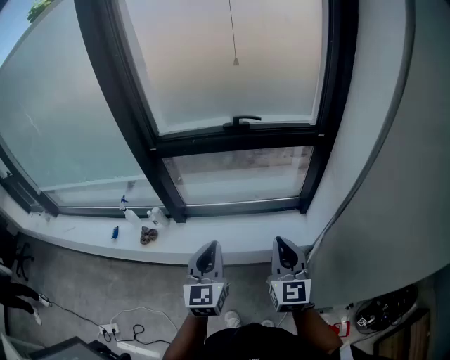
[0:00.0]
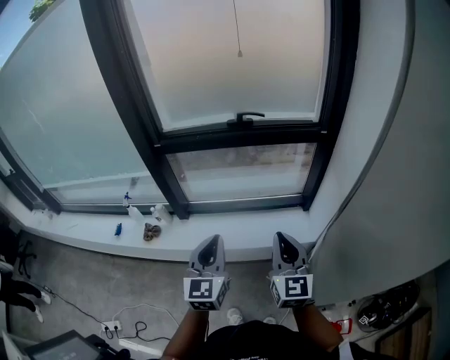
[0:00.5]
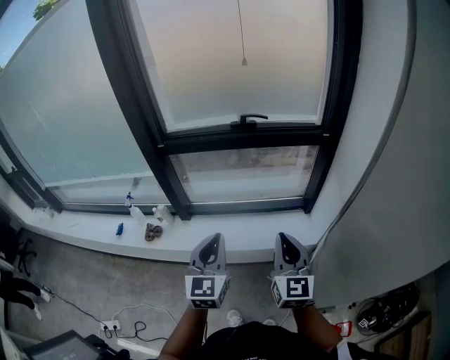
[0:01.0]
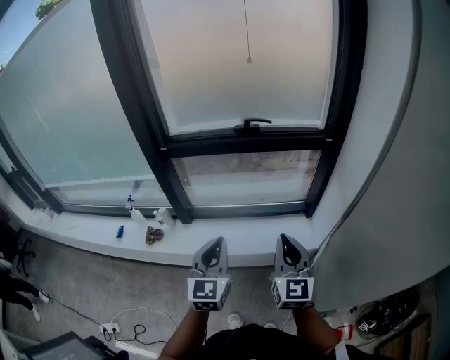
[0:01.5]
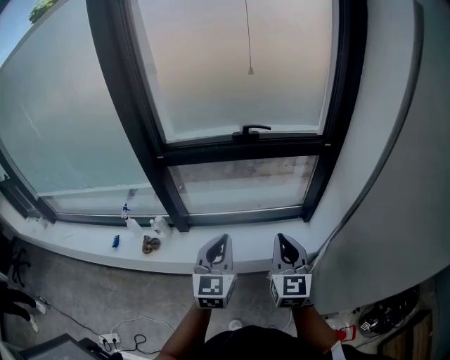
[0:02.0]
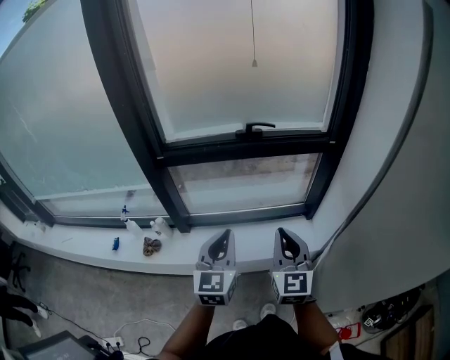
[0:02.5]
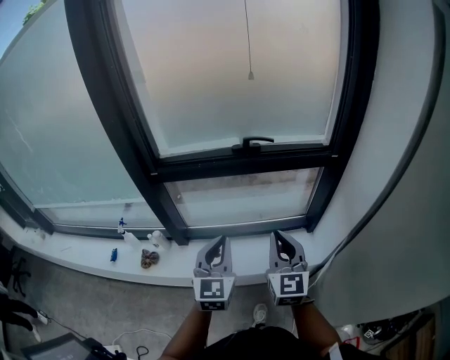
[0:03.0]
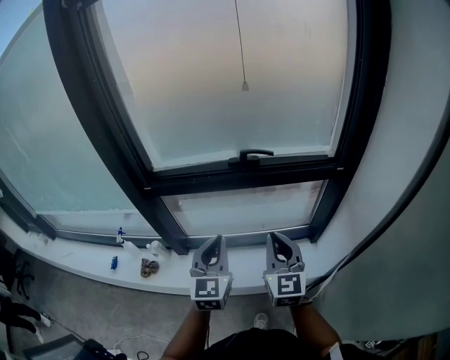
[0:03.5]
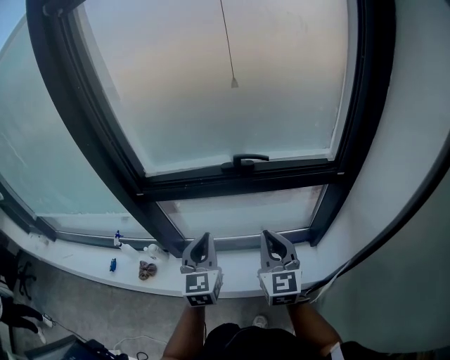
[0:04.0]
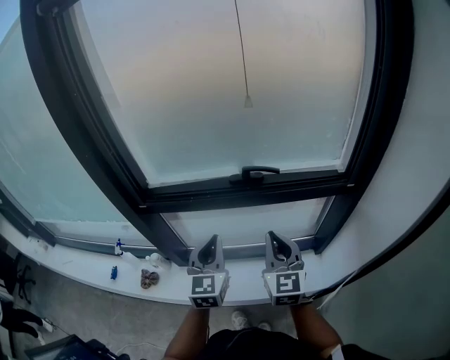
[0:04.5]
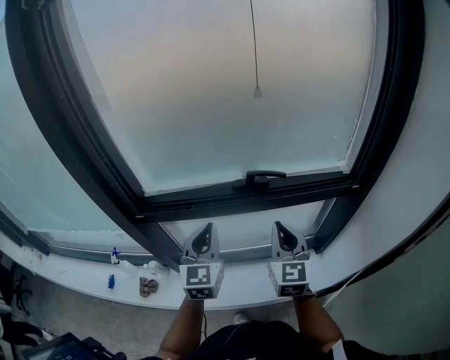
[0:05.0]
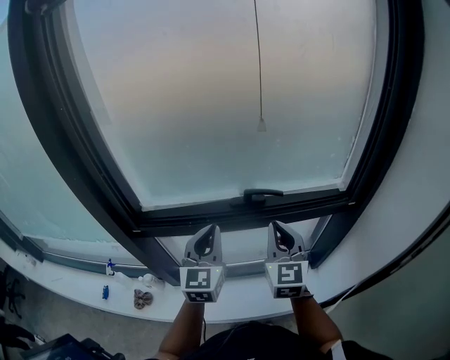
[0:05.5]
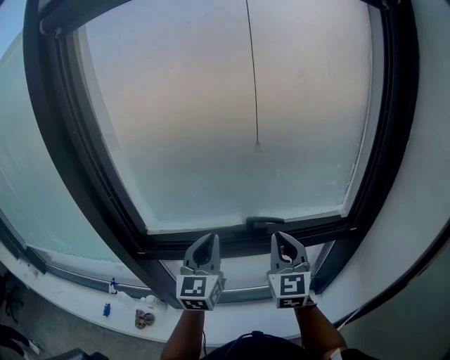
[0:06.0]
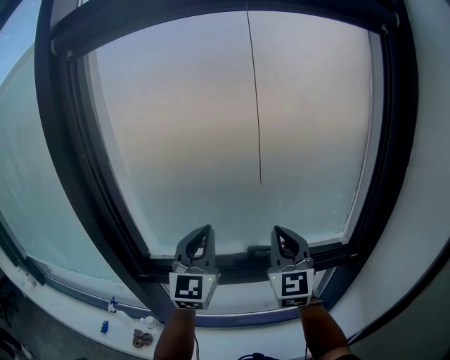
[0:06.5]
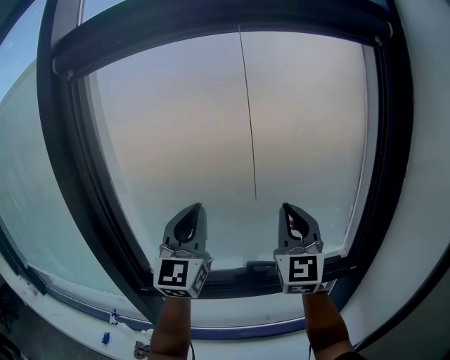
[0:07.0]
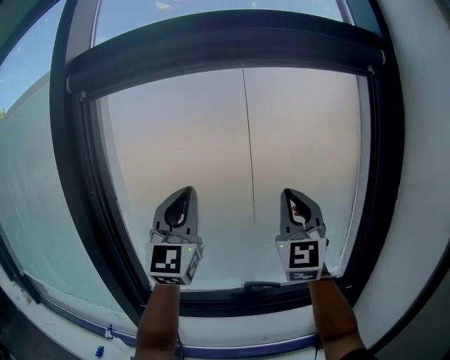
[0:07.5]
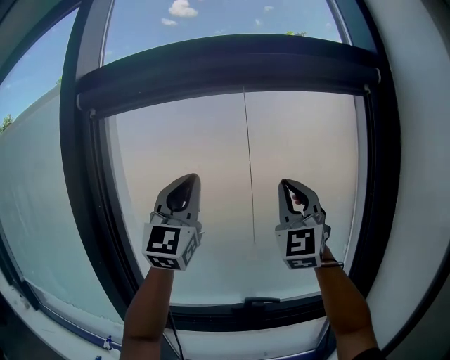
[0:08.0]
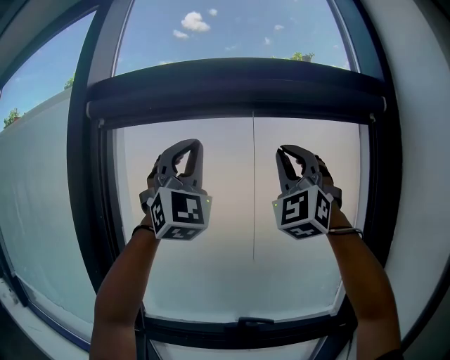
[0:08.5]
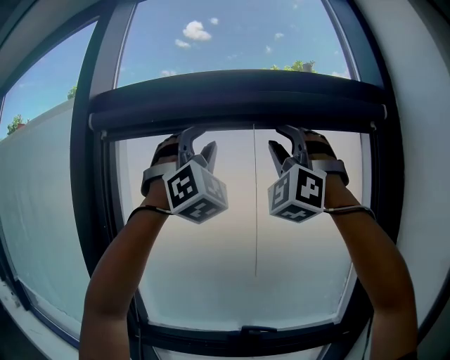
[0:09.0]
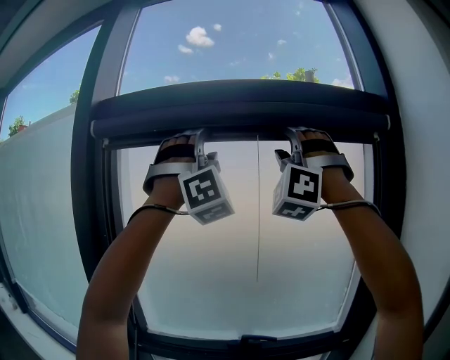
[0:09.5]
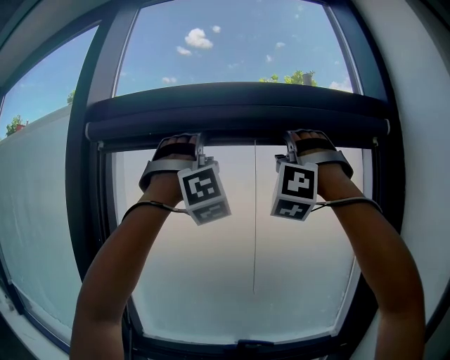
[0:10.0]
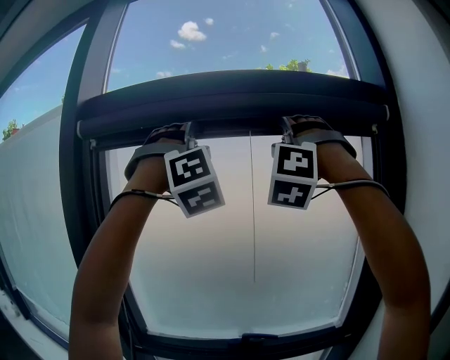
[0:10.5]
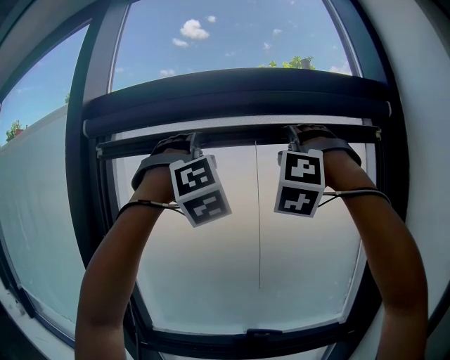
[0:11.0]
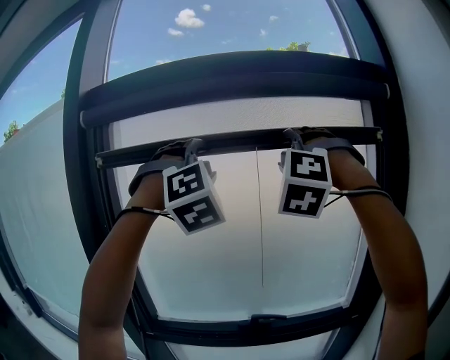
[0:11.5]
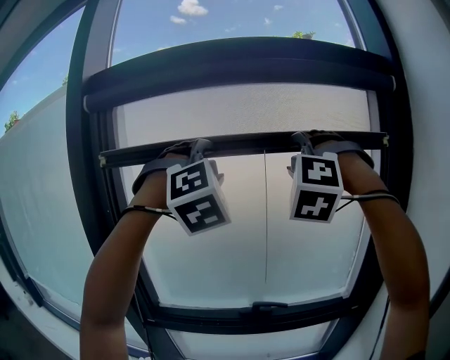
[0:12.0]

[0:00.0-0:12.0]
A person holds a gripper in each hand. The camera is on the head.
0:00.0 to 0:02.0: The right gripper shifts by some 5 cm.
0:02.0 to 0:04.0: The two grippers go some 20 cm forward.
0:04.0 to 0:06.0: The grippers both shift forward and upward by approximately 20 cm.
0:06.0 to 0:08.0: The grippers both shift upward by some 40 cm. The right gripper angles its fingers upward, by approximately 30 degrees. The left gripper points its fingers some 30 degrees further upward.
0:08.0 to 0:10.0: Both grippers travel together upward, some 20 cm. The left gripper rolls clockwise, seen from behind, by about 70 degrees, and opens. Meanwhile the right gripper twists about 60 degrees counterclockwise, seen from behind, and opens up.
0:10.0 to 0:12.0: The grippers both shift downward by roughly 15 cm. The right gripper swivels some 30 degrees; the left gripper rotates approximately 30 degrees.

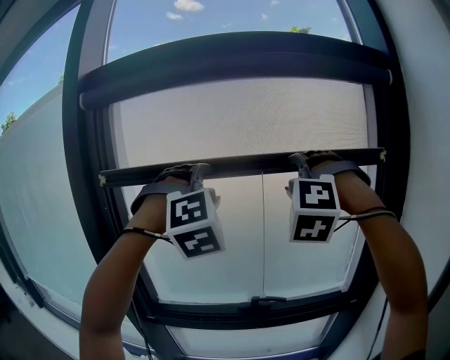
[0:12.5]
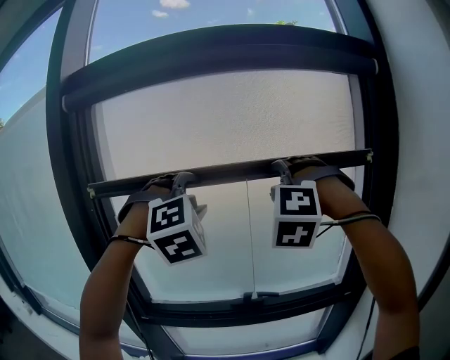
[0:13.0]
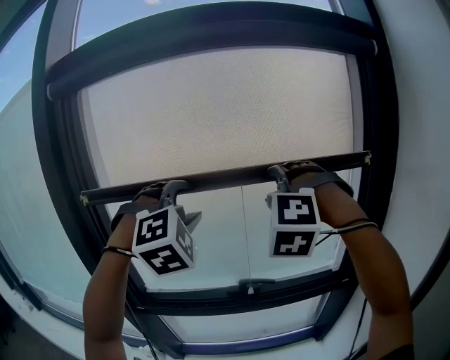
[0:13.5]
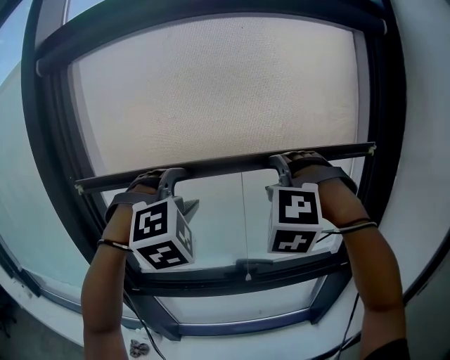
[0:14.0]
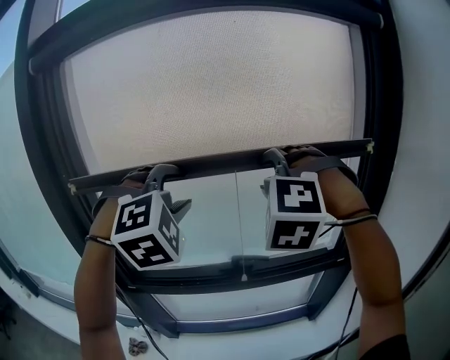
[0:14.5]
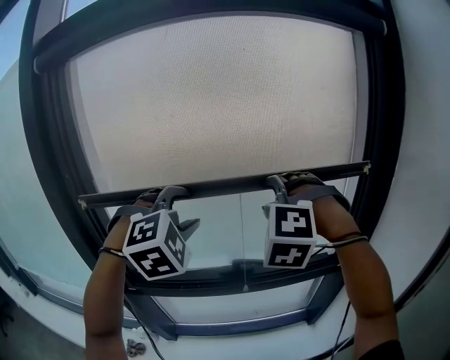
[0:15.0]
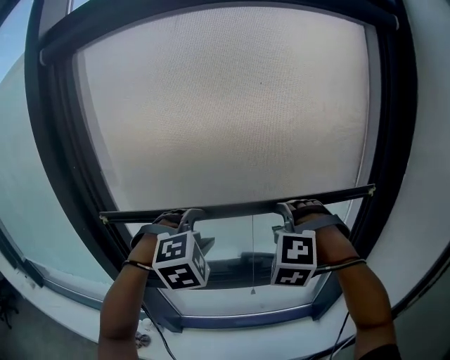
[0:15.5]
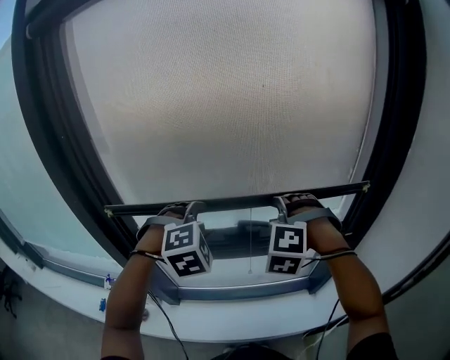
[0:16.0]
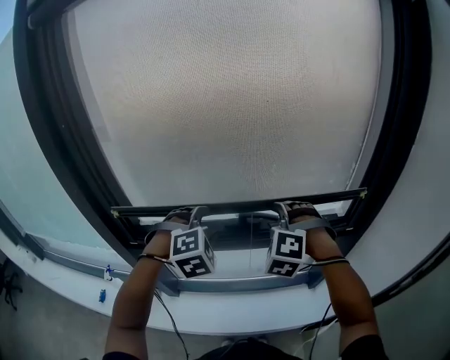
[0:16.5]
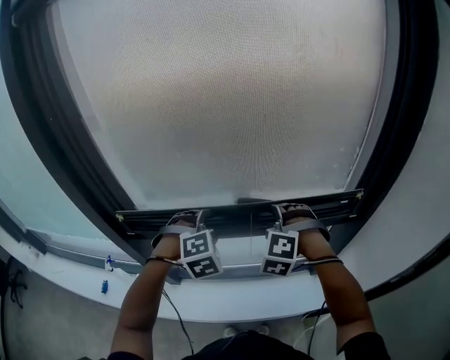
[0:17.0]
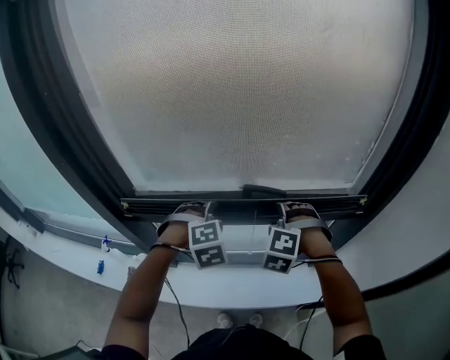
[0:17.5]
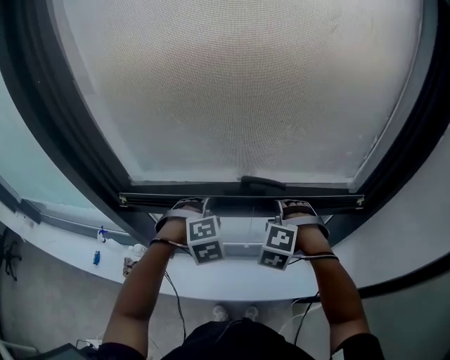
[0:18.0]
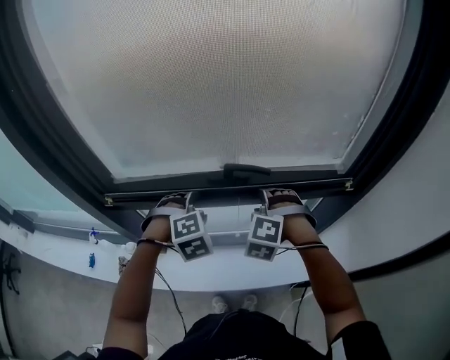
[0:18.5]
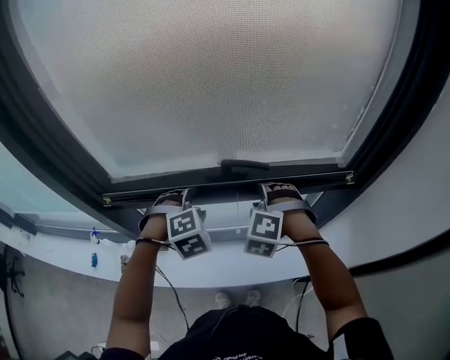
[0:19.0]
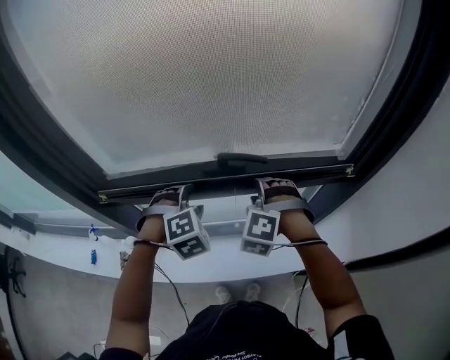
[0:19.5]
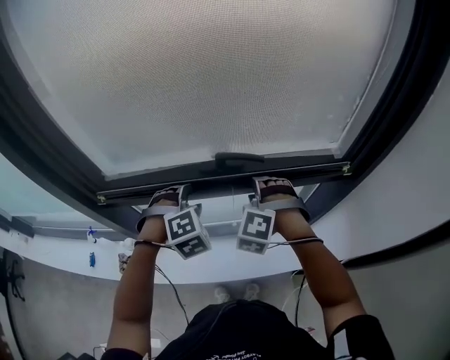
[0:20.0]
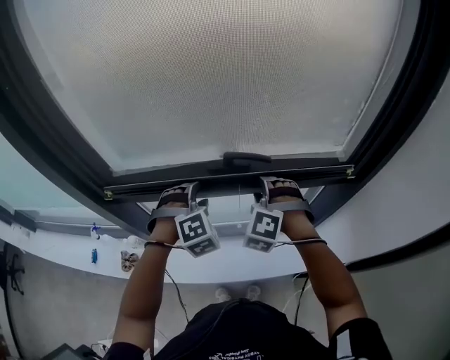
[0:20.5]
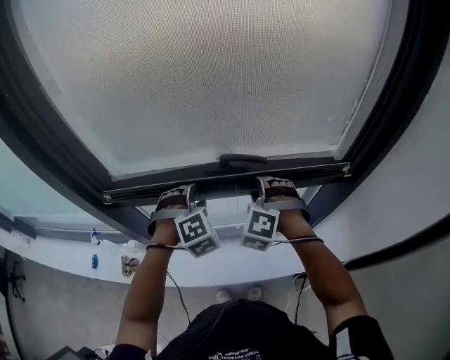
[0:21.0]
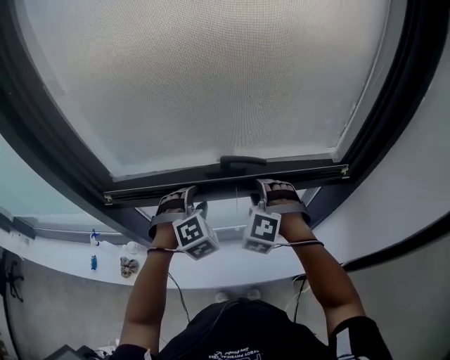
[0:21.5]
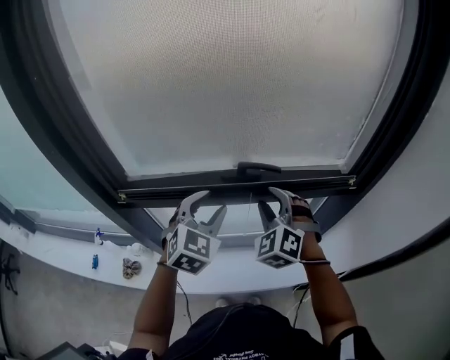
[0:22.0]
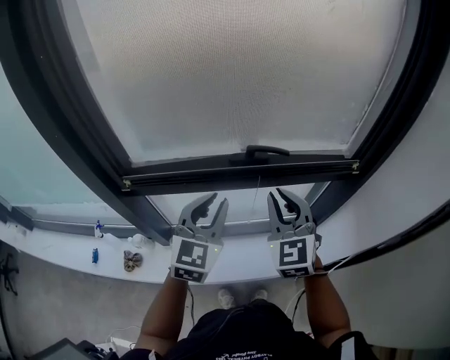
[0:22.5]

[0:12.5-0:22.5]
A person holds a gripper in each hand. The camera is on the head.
0:12.5 to 0:14.5: The two grippers go about 10 cm downward.
0:14.5 to 0:16.5: The two grippers go approximately 25 cm downward. The left gripper changes its angle by about 20 degrees.
0:16.5 to 0:18.5: The two grippers go approximately 15 cm downward.
0:18.5 to 0:20.5: The grippers stay close to where they were, moving slightly.
0:20.5 to 0:22.5: Both grippers travel together upward and backward, about 15 cm. The left gripper points its fingers approximately 30 degrees further upward, and closes, while the right gripper rotates around the line of its fingers by about 50 degrees, clockwise from behind, and closes its fingers.

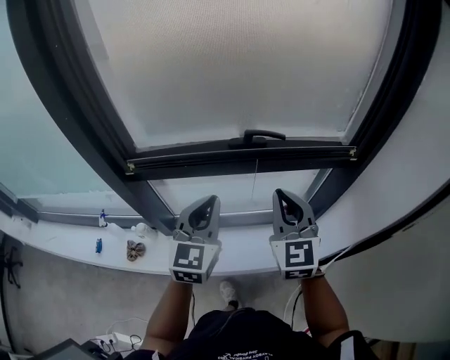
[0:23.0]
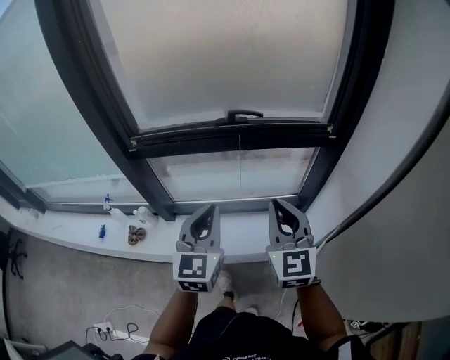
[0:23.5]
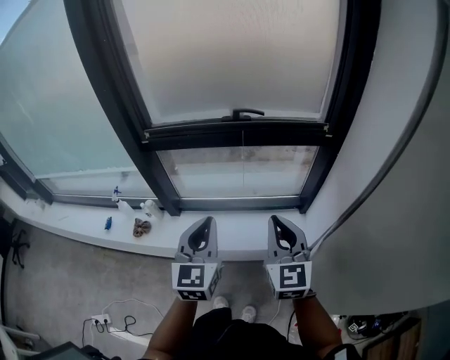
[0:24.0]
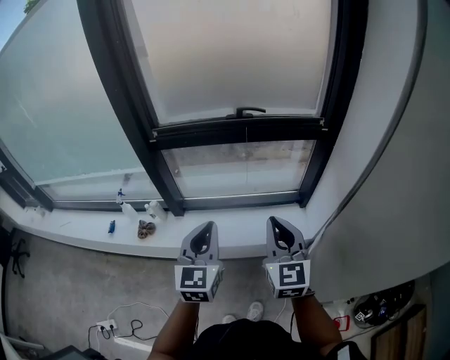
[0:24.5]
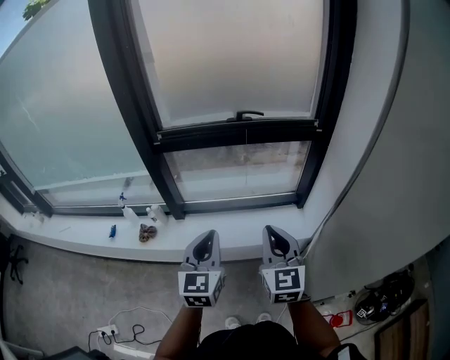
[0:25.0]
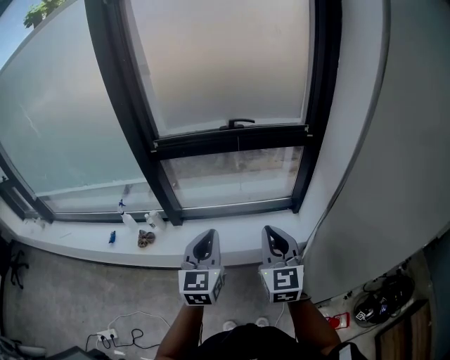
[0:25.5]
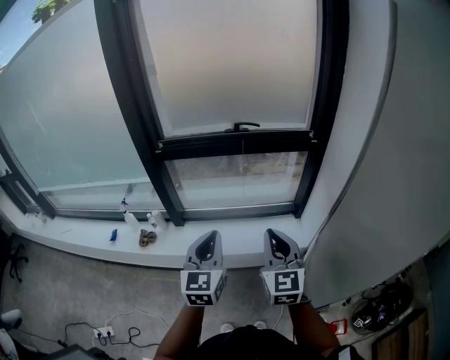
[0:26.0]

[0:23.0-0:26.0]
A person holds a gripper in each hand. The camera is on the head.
0:23.0 to 0:24.5: Both grippers move backward, about 30 cm.
0:24.5 to 0:26.0: The two grippers go roughly 5 cm backward.

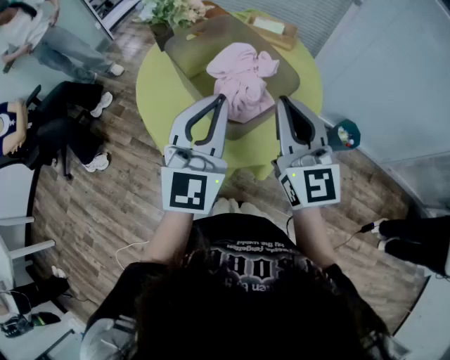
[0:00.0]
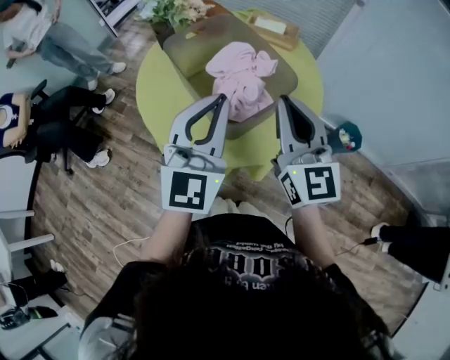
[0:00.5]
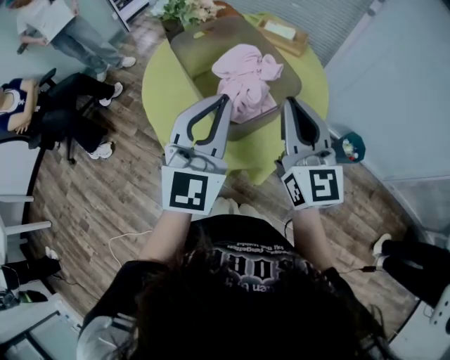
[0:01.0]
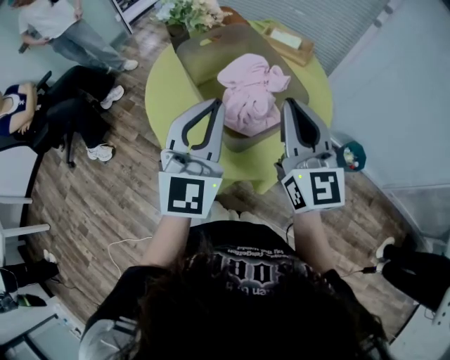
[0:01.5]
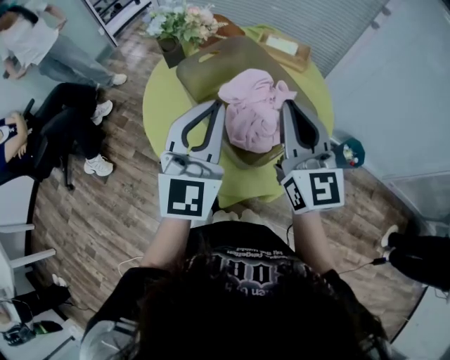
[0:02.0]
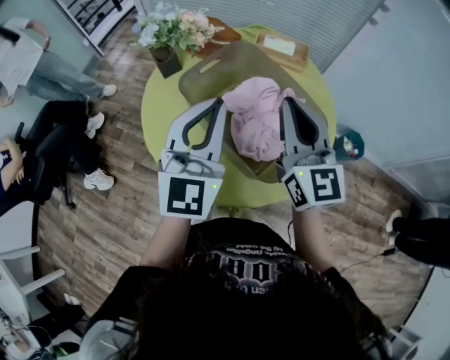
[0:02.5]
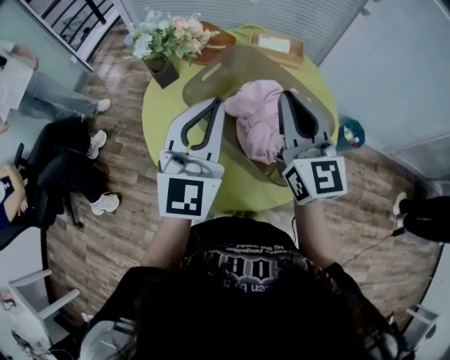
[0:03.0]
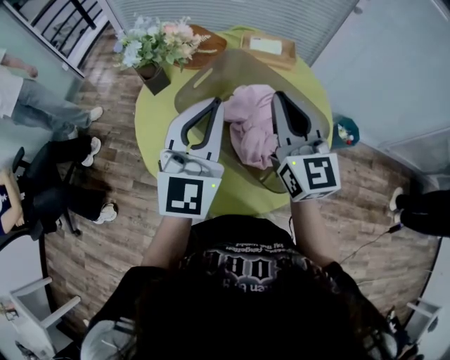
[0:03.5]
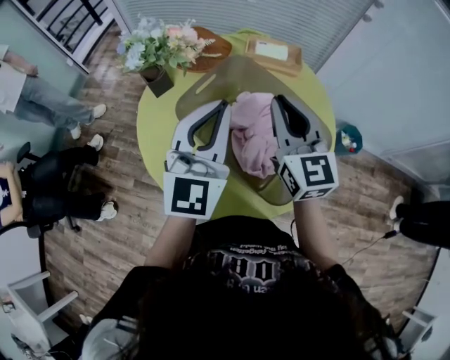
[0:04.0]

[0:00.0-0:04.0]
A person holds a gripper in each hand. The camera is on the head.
0:00.0 to 0:02.0: Both grippers travel together forward, about 10 cm.
0:02.0 to 0:04.0: The left gripper heads forward, covering some 10 cm; the right gripper is displaced forward and to the left by about 10 cm.
